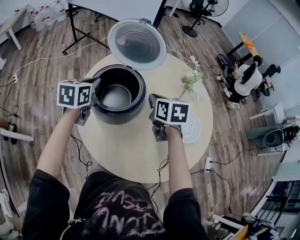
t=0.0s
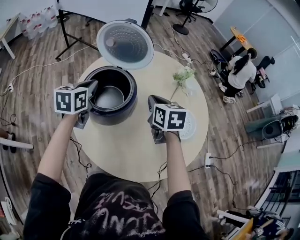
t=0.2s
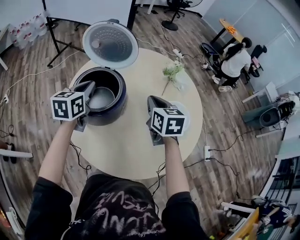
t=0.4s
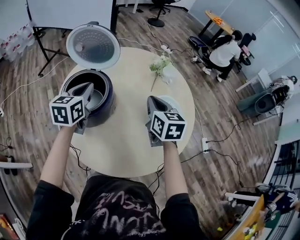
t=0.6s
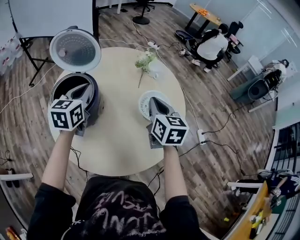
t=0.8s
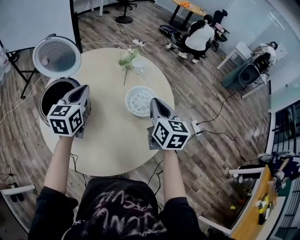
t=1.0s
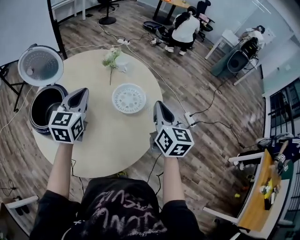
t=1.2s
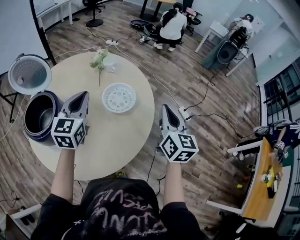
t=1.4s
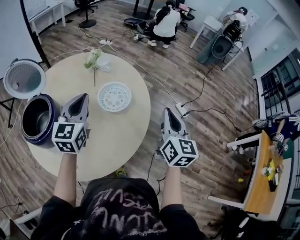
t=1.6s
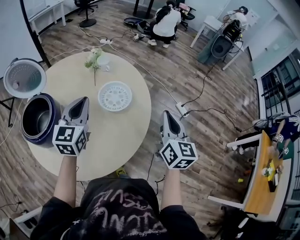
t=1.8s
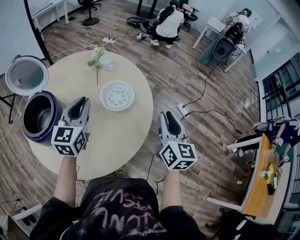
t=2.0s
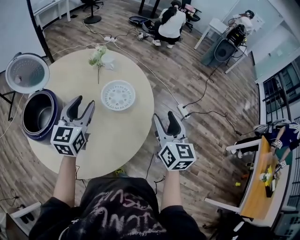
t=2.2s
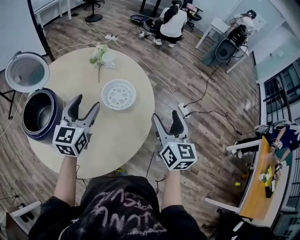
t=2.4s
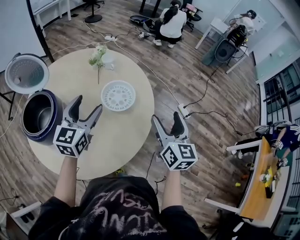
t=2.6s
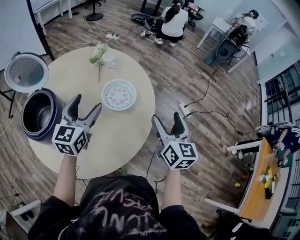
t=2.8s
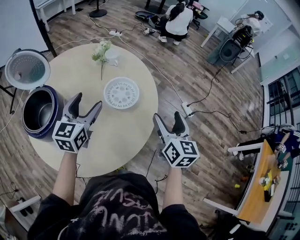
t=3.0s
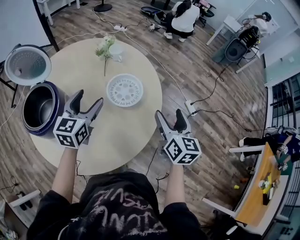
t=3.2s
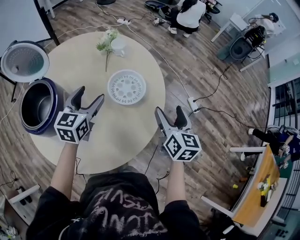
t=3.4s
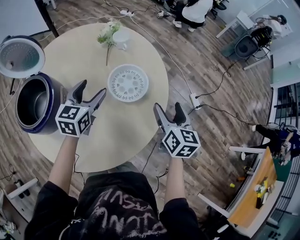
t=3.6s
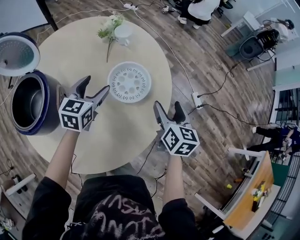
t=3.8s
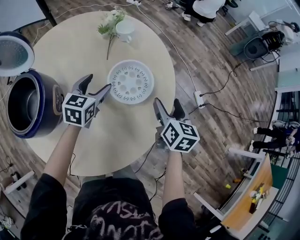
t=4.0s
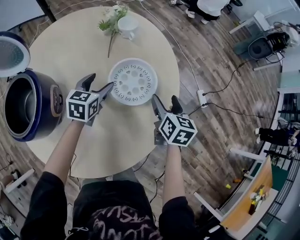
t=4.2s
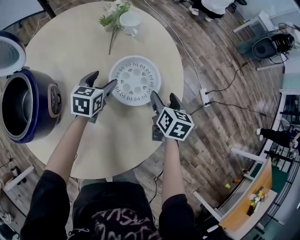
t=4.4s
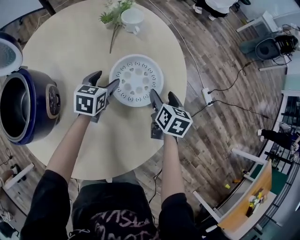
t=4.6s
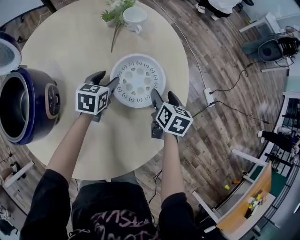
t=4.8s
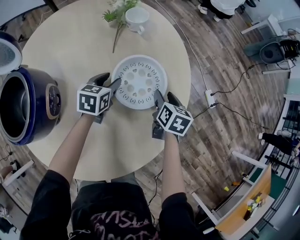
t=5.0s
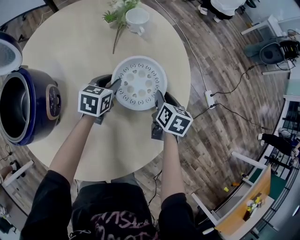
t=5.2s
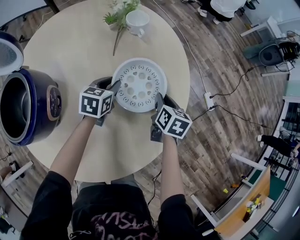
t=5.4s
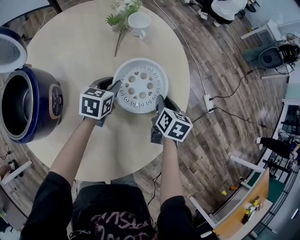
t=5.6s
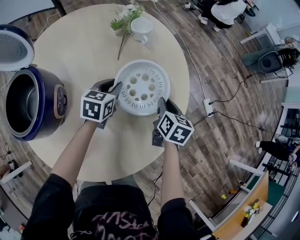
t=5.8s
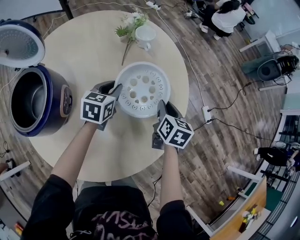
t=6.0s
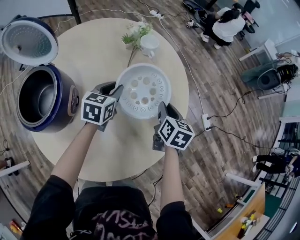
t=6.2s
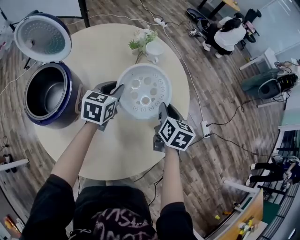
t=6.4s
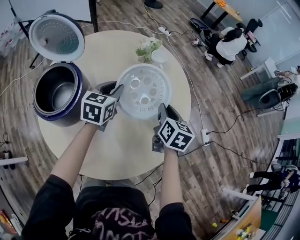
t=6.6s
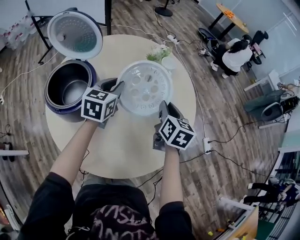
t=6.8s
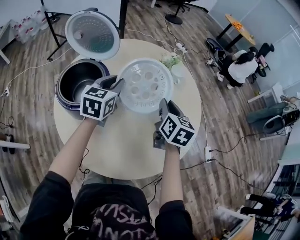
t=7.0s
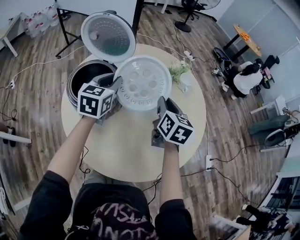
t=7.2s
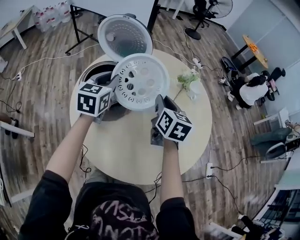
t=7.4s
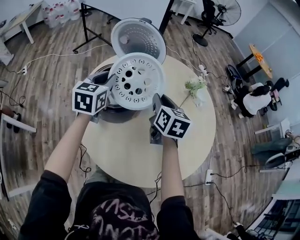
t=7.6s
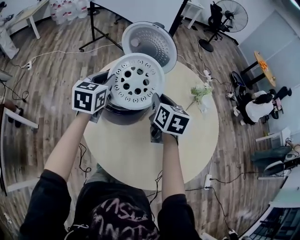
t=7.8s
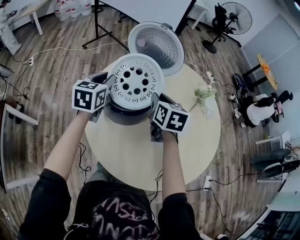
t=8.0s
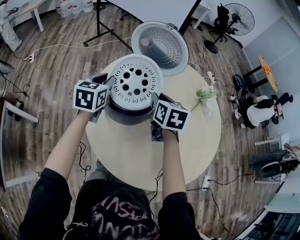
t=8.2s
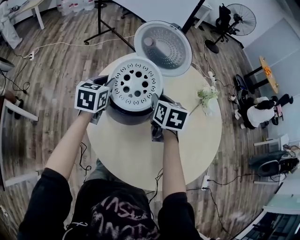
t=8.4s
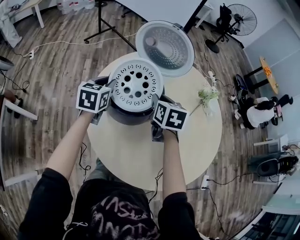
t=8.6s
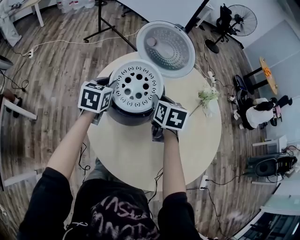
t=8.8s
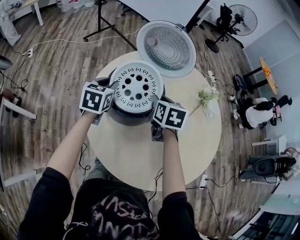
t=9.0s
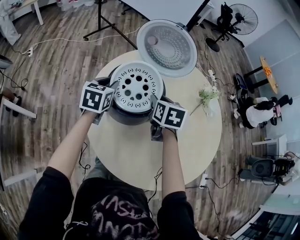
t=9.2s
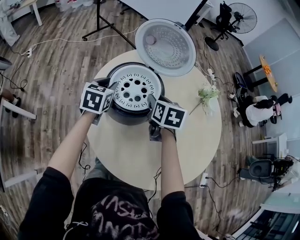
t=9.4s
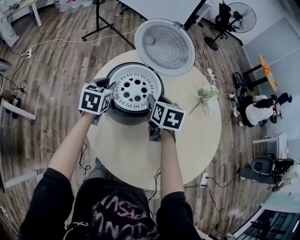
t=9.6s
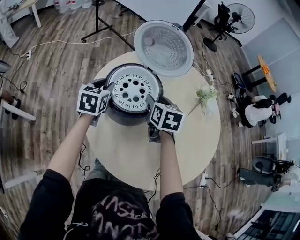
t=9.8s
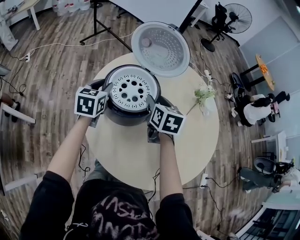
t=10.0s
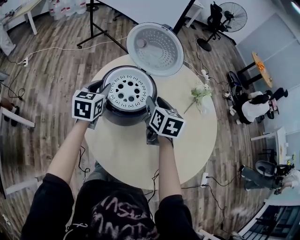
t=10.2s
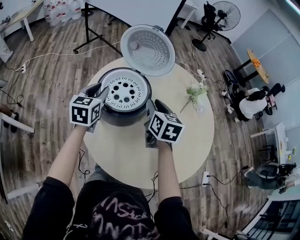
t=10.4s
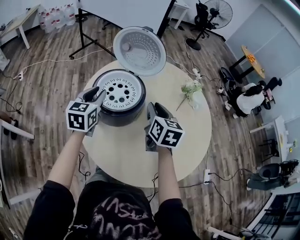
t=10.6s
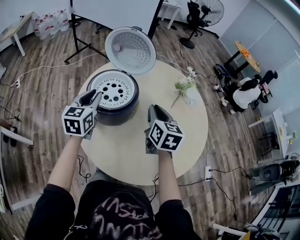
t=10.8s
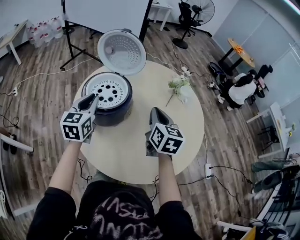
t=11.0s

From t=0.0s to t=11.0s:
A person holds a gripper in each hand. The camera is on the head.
From t=0.0s to t=1.6s: The left gripper shifts by roughly 40 cm, and swivels about 40 degrees, while the right gripper changes place by roughly 50 cm, and angles its fingers upward, by some 30 degrees.
From t=1.6s to t=3.2s: Both grippers travel together downward, approximately 5 cm. The right gripper opens up; the left gripper opens.
From t=3.2s to t=4.8s: The two grippers go about 30 cm downward and forward. The left gripper rotates approximately 30 degrees. The right gripper rotates about 30 degrees.
From t=4.8s to t=6.2s: The two grippers go roughly 10 cm upward. The left gripper closes its fingers. The right gripper closes up.
From t=6.2s to t=7.8s: The left gripper moves about 40 cm, and swivels about 40 degrees; the right gripper moves about 40 cm, and changes its angle by about 40 degrees.
From t=7.8s to t=9.4s: Both grippers travel together downward, about 10 cm.
From t=9.4s to t=11.0s: The right gripper is displaced to the right, backward and upward by roughly 20 cm, swivels roughly 30 degrees, and closes up. Meanwhile the left gripper goes approximately 15 cm upward, backward and to the right, and changes its angle by roughly 20 degrees.

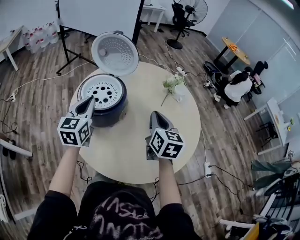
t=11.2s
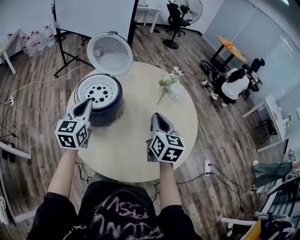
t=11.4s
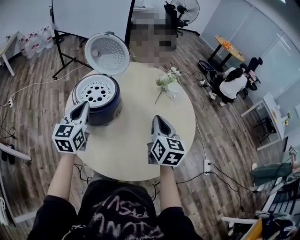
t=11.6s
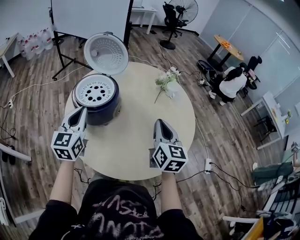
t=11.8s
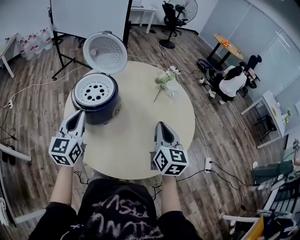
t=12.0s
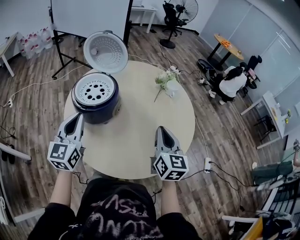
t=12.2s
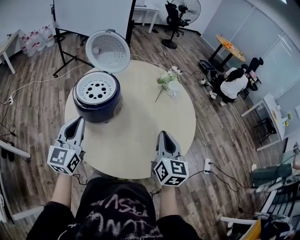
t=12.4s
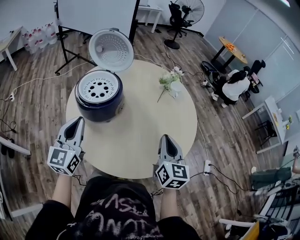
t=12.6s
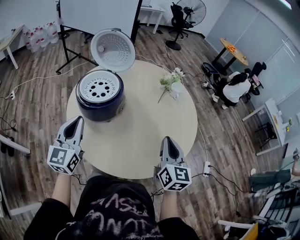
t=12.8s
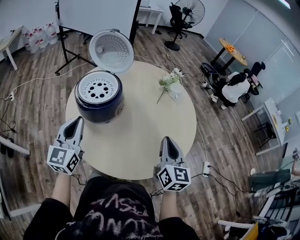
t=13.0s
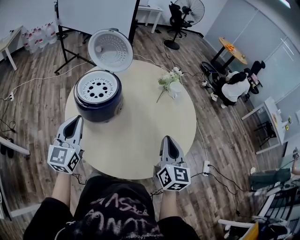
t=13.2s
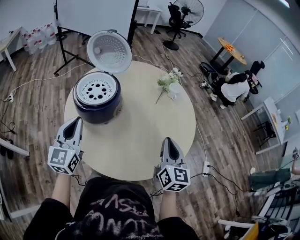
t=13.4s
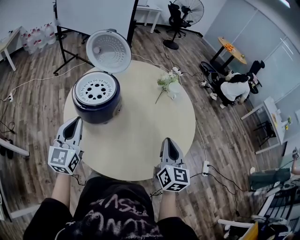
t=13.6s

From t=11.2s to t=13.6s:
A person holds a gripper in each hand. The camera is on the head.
From t=11.2s to t=12.4s: The right gripper heads backward and to the right, covering approximately 15 cm; the left gripper is displaced backward by roughly 10 cm.
From t=12.4s to t=13.6s: The grippers move only a little.

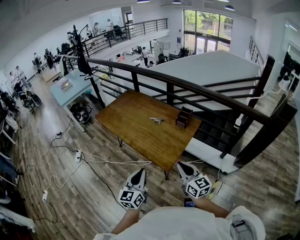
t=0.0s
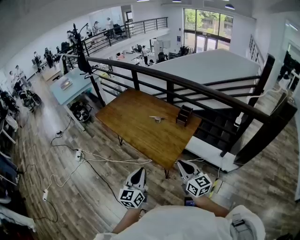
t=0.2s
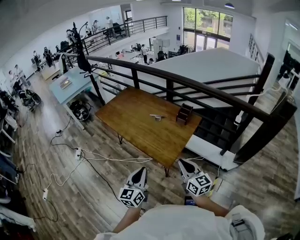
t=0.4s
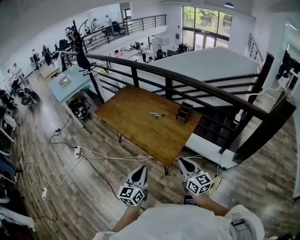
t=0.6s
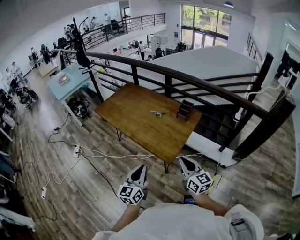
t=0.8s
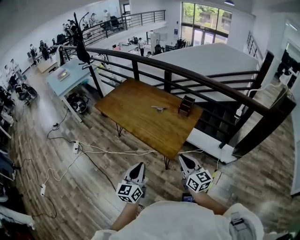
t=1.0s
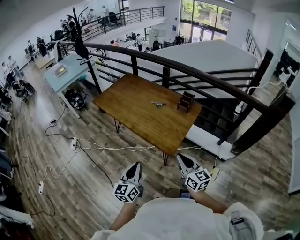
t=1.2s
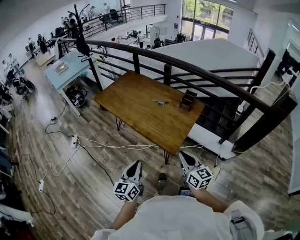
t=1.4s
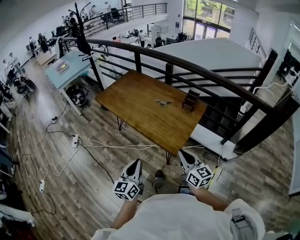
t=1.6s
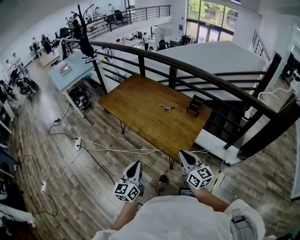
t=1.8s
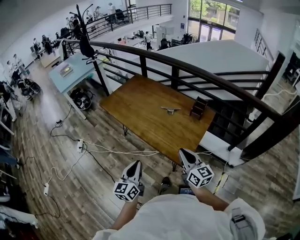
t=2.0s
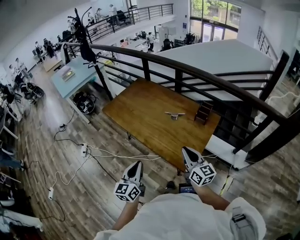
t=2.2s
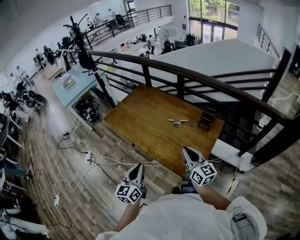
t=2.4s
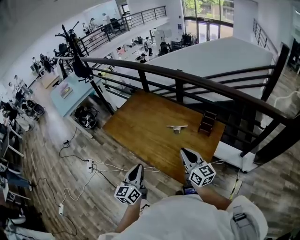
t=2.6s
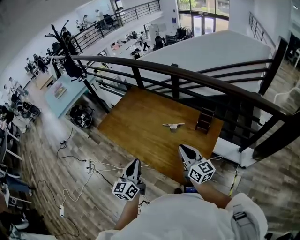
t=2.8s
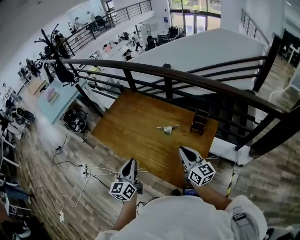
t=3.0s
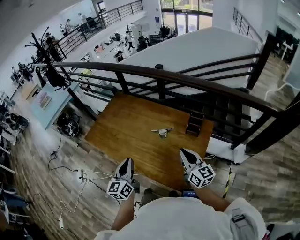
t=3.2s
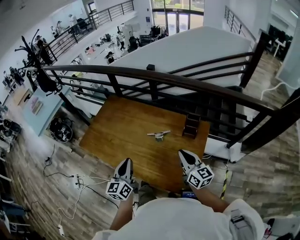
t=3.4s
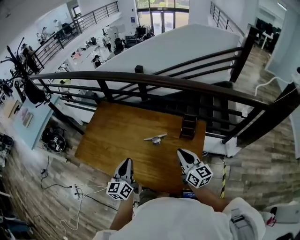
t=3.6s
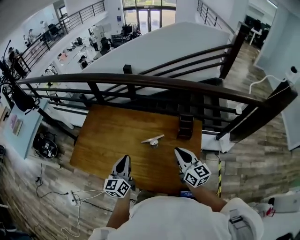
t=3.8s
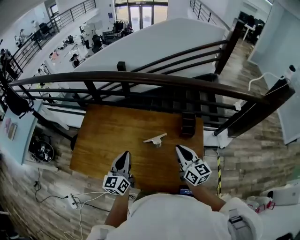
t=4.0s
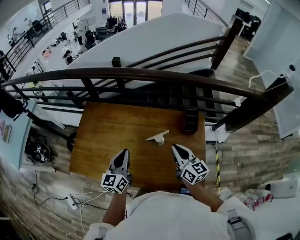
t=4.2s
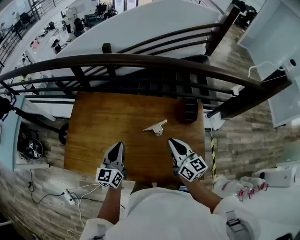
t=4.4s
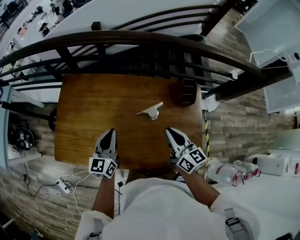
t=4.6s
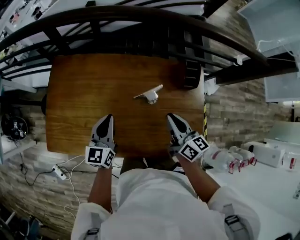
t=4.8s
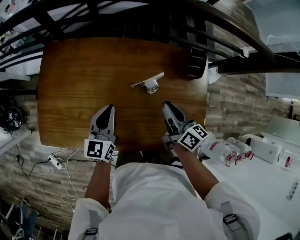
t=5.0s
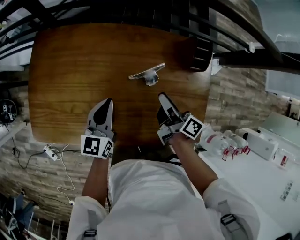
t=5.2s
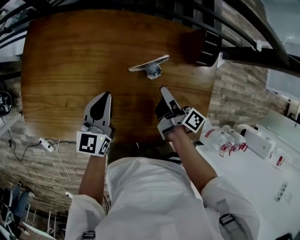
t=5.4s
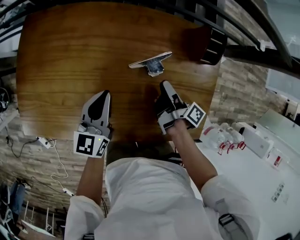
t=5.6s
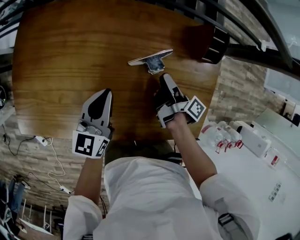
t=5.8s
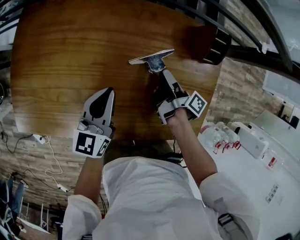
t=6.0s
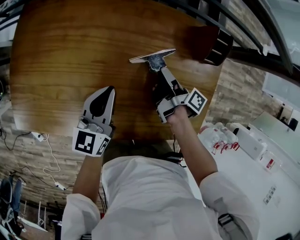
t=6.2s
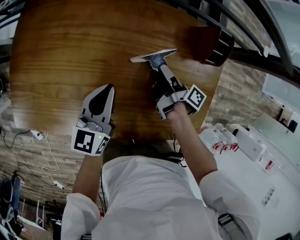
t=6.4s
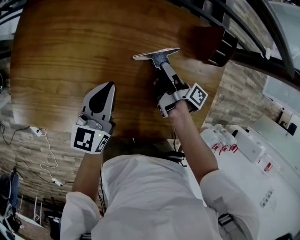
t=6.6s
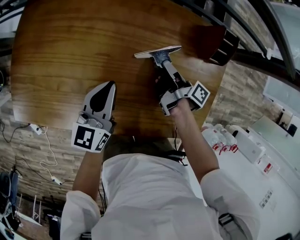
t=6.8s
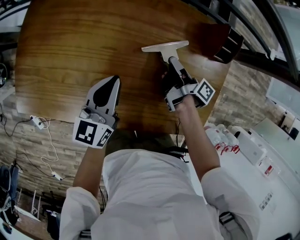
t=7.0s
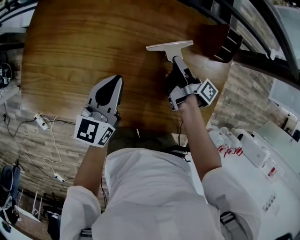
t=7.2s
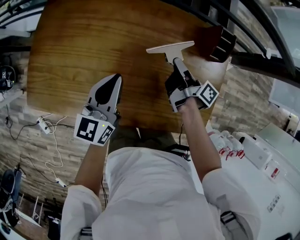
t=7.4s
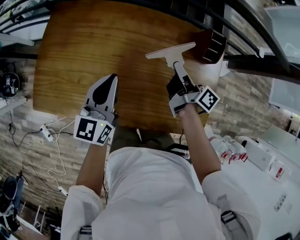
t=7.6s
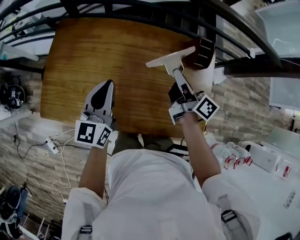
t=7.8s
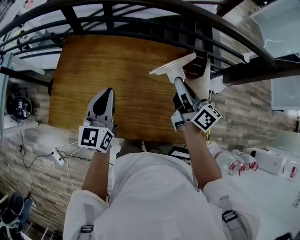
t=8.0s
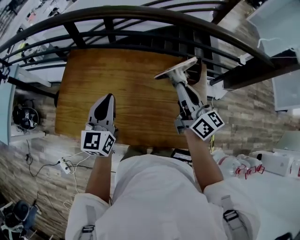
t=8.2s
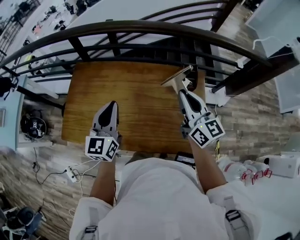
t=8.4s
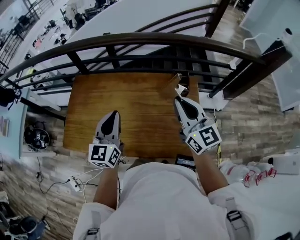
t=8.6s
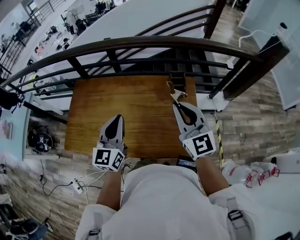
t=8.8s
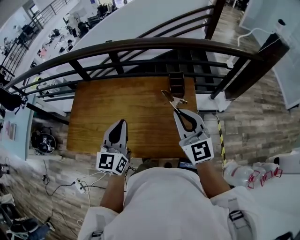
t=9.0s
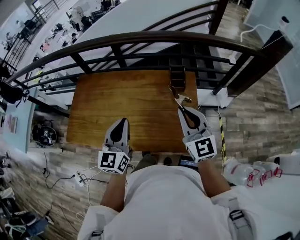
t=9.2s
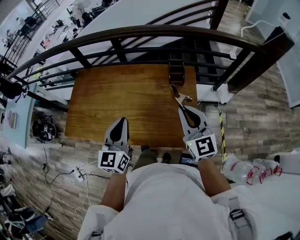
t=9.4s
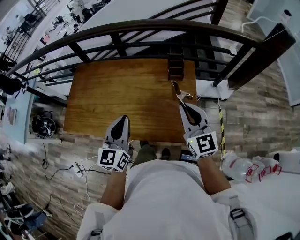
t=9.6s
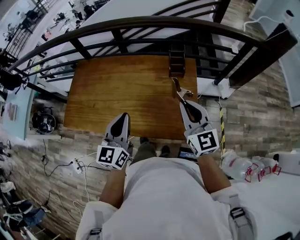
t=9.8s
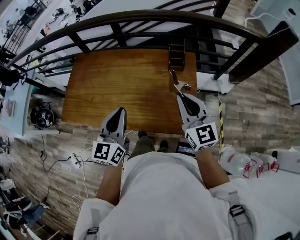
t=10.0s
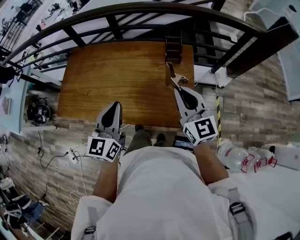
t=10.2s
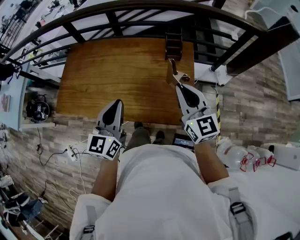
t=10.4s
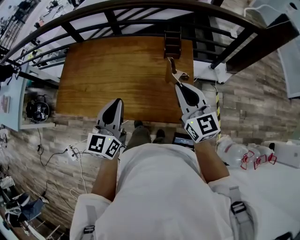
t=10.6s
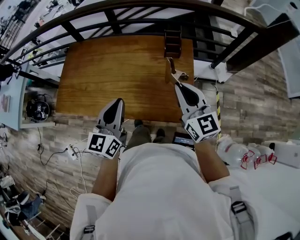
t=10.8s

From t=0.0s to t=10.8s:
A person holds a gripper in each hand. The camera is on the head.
From t=0.0s to t=1.6s: Both grippers travel together to the left, roughly 10 cm.
From t=1.6s to t=3.0s: Both grippers move forward, roughly 30 cm.
From t=3.0s to t=4.6s: The right gripper ends up about 20 cm from where it was, and turns by approximately 30 degrees, while the left gripper shifts by some 35 cm, and turns by about 30 degrees.
From t=4.6s to t=6.2s: The left gripper moves downward, roughly 15 cm. Meanwhile the right gripper goes about 30 cm downward and forward, twists about 70 degrees clockwise, seen from behind, and opens up.
From t=6.2s to t=7.8s: The grippers both shift upward by some 20 cm. The right gripper turns by approximately 40 degrees, and closes.
From t=7.8s to t=9.2s: The right gripper heads backward, upward and to the right, covering about 30 cm, and rolls counterclockwise, seen from behind, by approximately 60 degrees; the left gripper goes some 25 cm to the right, backward and upward.
From t=9.2s to t=10.8s: The right gripper changes place by roughly 5 cm, while the left gripper travels backward by about 5 cm.
